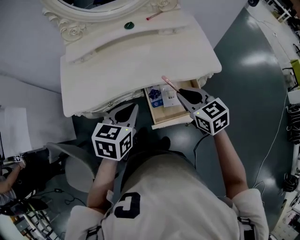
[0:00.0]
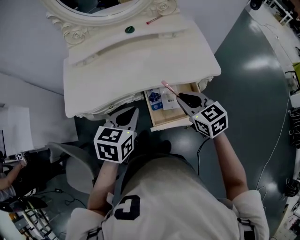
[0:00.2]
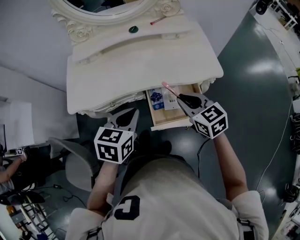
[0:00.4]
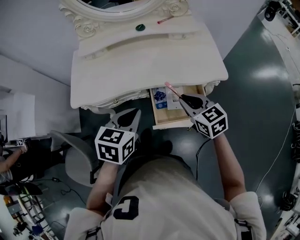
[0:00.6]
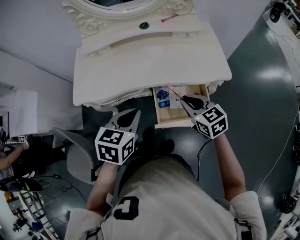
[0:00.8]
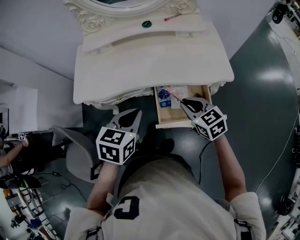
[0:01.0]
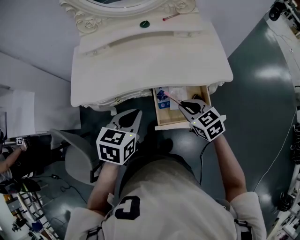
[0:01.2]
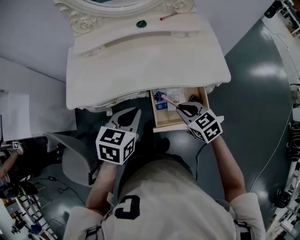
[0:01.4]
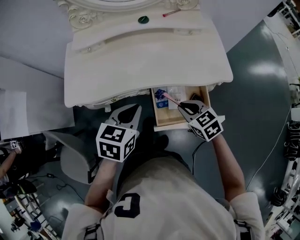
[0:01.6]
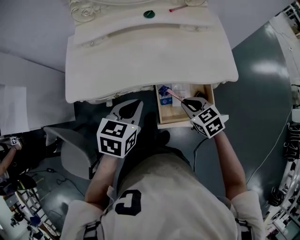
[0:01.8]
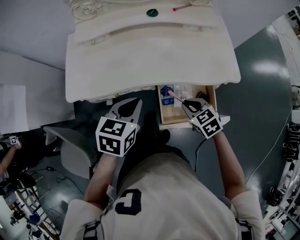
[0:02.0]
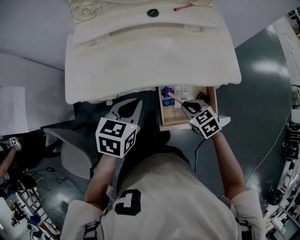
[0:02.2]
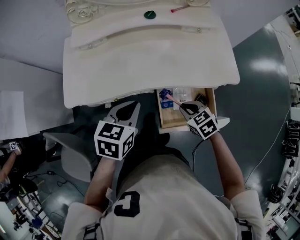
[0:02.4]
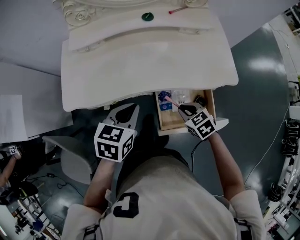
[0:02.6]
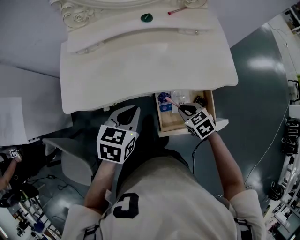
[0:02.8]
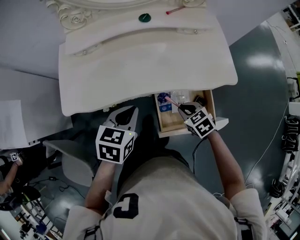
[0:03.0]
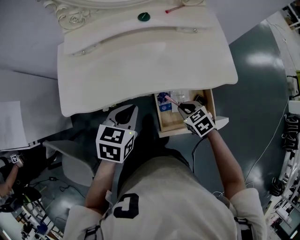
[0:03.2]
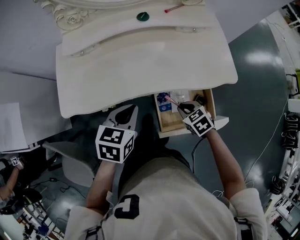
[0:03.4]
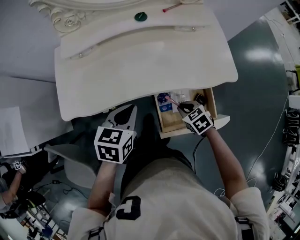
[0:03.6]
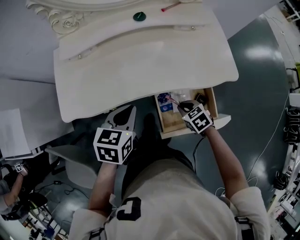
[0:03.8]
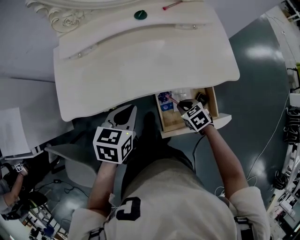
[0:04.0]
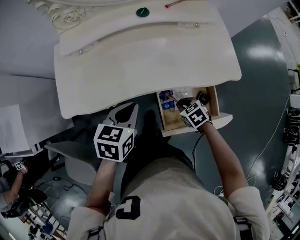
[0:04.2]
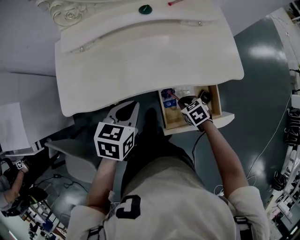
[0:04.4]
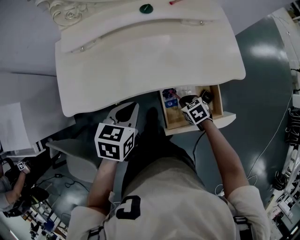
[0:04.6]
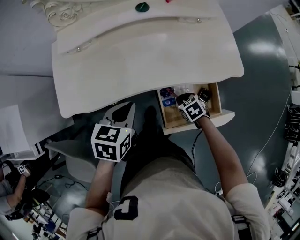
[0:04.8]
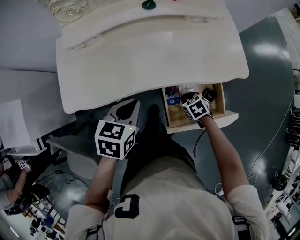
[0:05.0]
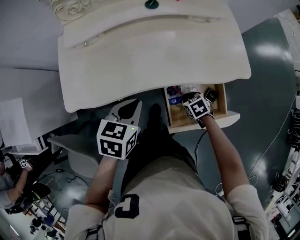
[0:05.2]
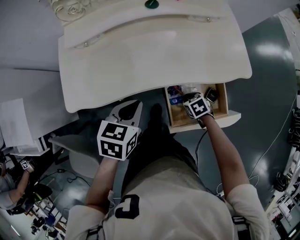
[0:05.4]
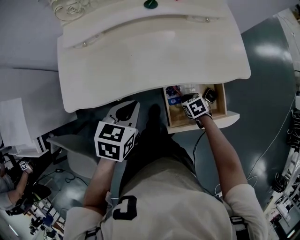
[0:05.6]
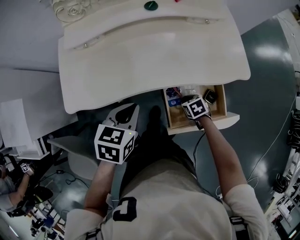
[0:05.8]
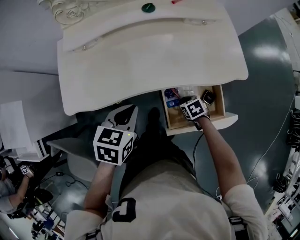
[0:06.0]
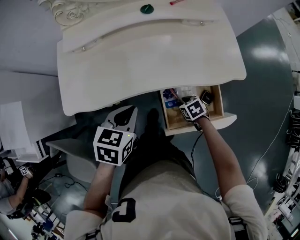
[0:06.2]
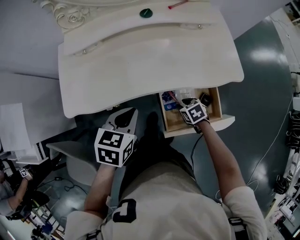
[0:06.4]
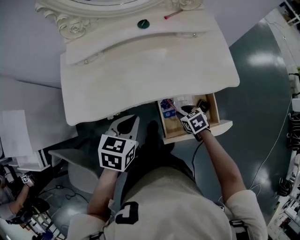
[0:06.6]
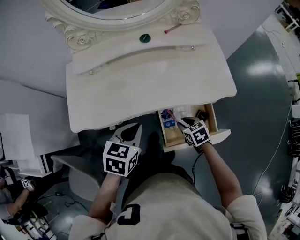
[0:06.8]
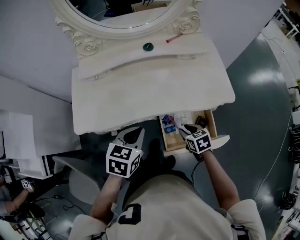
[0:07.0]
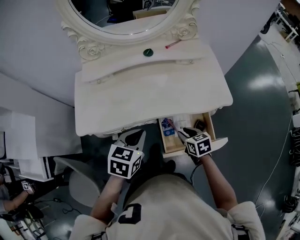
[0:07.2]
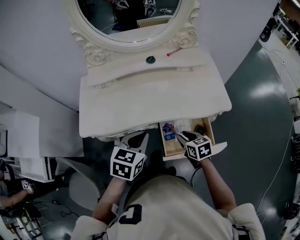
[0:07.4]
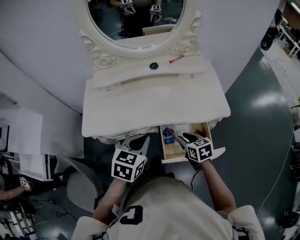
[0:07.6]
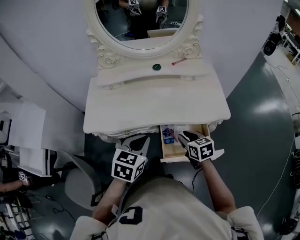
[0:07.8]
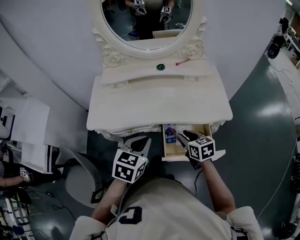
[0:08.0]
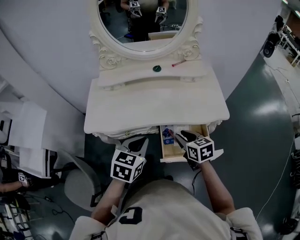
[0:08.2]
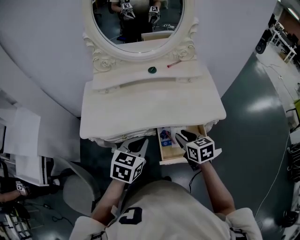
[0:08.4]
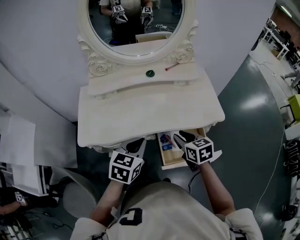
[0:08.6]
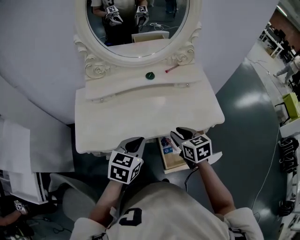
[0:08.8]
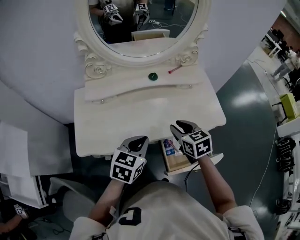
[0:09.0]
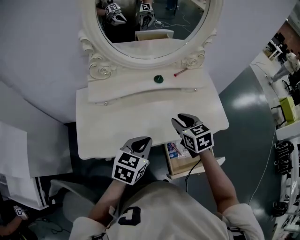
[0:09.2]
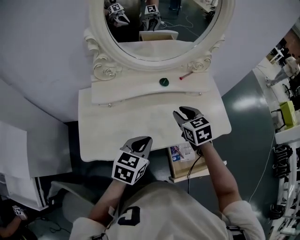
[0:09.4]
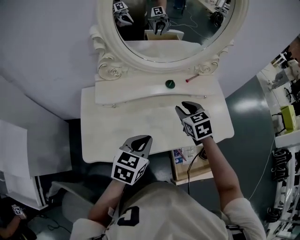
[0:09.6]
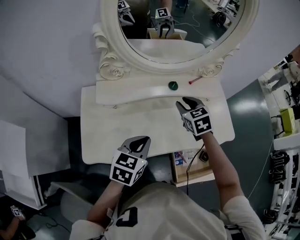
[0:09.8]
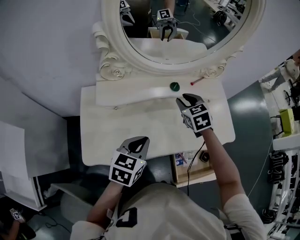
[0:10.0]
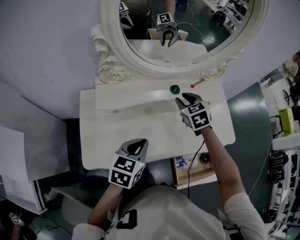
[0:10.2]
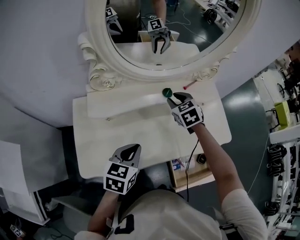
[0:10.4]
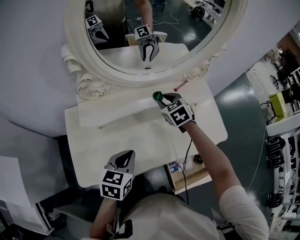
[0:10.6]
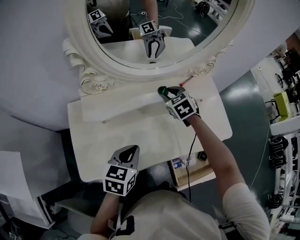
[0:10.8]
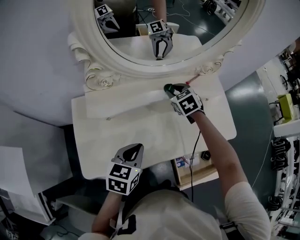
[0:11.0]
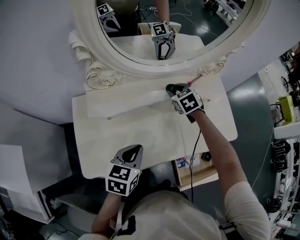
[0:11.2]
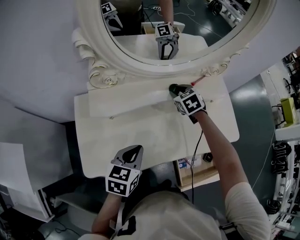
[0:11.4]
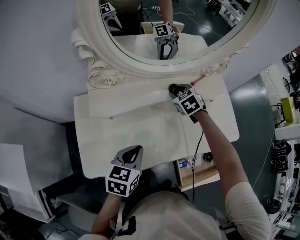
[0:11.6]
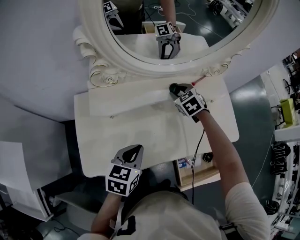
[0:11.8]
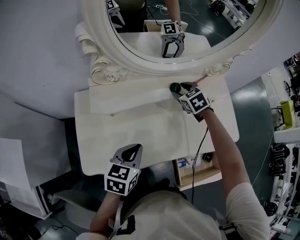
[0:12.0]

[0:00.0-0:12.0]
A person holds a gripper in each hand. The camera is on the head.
0:00.0 to 0:01.6: The right gripper heads downward, covering roughly 10 cm.
0:01.6 to 0:03.0: The right gripper heads downward, covering some 10 cm, while the left gripper goes some 5 cm forward.
0:03.0 to 0:04.4: The right gripper travels downward by about 5 cm.
0:04.4 to 0:06.0: The right gripper heads downward, covering some 5 cm.
0:06.0 to 0:07.6: The left gripper shifts roughly 10 cm upward and backward. The right gripper heads upward, covering approximately 20 cm, and rotates some 30 degrees.
0:07.6 to 0:09.0: The right gripper goes roughly 15 cm forward, upward and to the left. Meanwhile the left gripper moves forward and to the left, roughly 10 cm.
0:09.0 to 0:10.4: The left gripper is displaced to the left and forward by about 15 cm, while the right gripper is displaced forward and to the left by roughly 25 cm, and changes its angle by about 20 degrees.
0:10.4 to 0:12.0: The right gripper heads downward, covering some 5 cm.

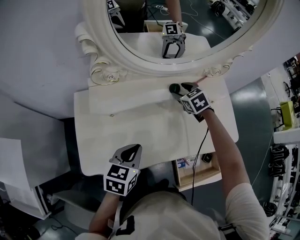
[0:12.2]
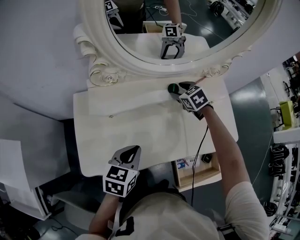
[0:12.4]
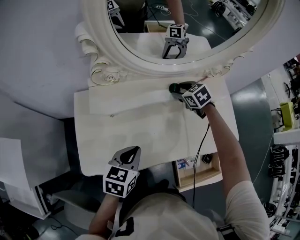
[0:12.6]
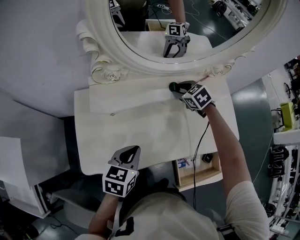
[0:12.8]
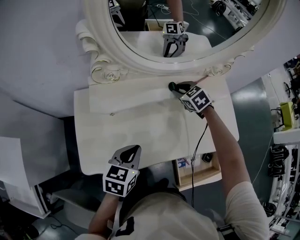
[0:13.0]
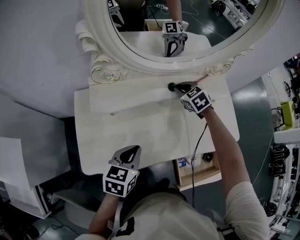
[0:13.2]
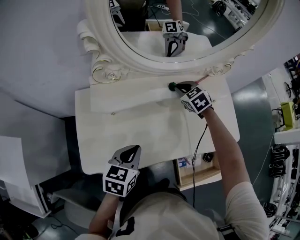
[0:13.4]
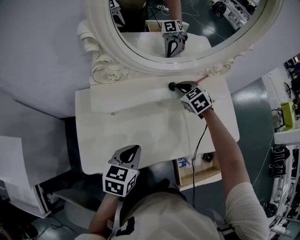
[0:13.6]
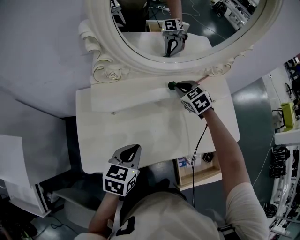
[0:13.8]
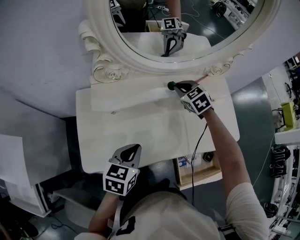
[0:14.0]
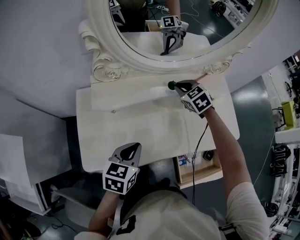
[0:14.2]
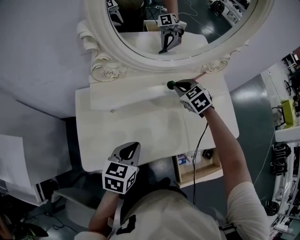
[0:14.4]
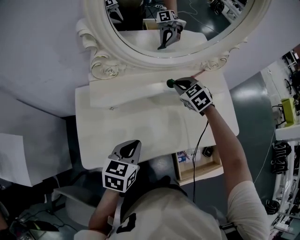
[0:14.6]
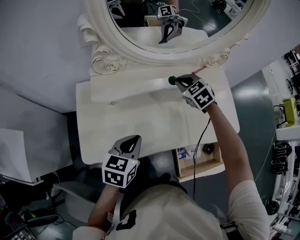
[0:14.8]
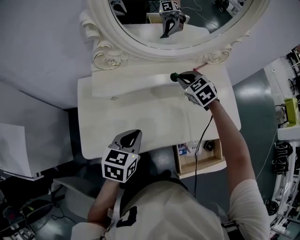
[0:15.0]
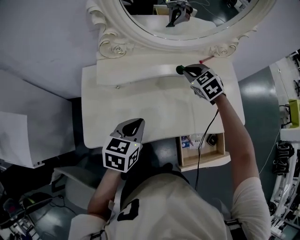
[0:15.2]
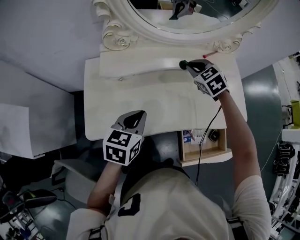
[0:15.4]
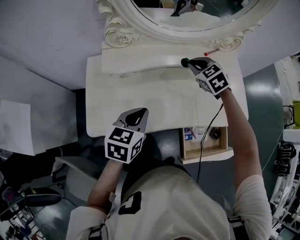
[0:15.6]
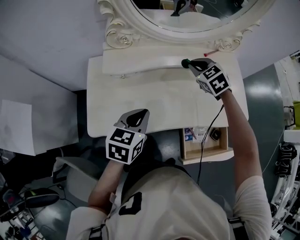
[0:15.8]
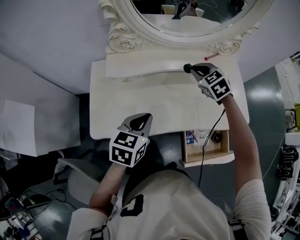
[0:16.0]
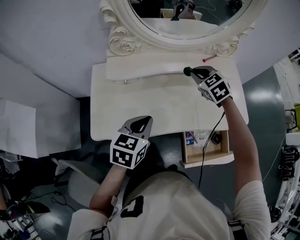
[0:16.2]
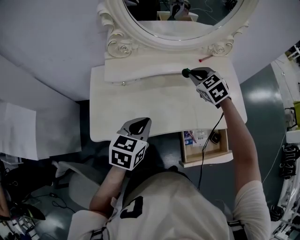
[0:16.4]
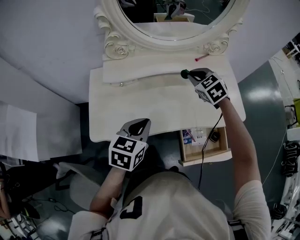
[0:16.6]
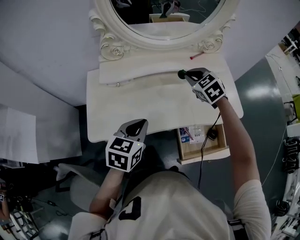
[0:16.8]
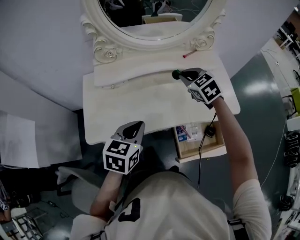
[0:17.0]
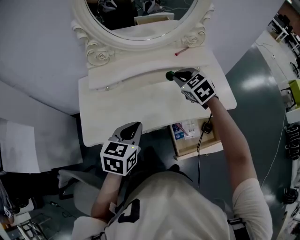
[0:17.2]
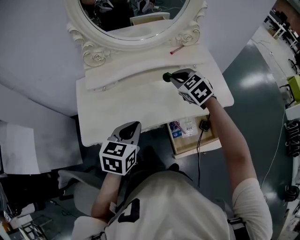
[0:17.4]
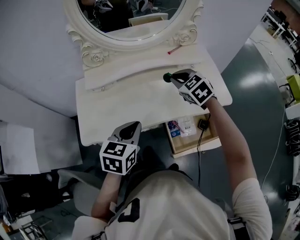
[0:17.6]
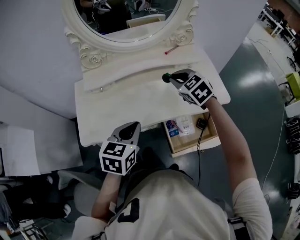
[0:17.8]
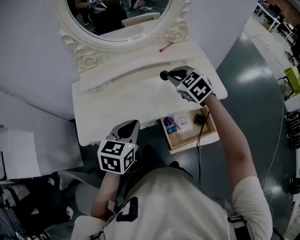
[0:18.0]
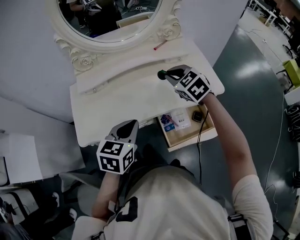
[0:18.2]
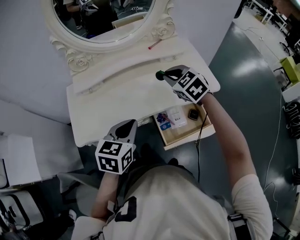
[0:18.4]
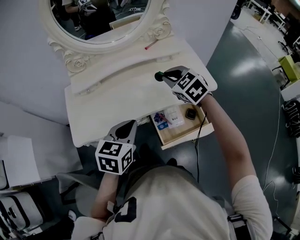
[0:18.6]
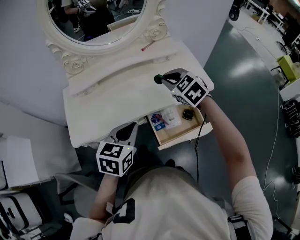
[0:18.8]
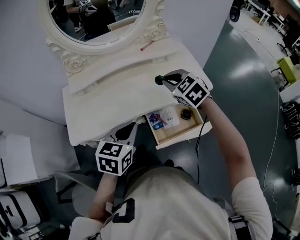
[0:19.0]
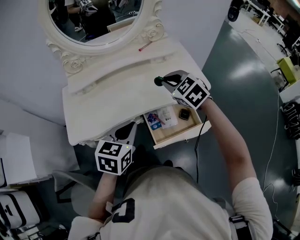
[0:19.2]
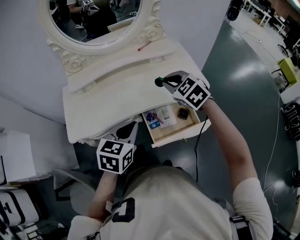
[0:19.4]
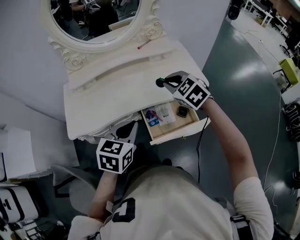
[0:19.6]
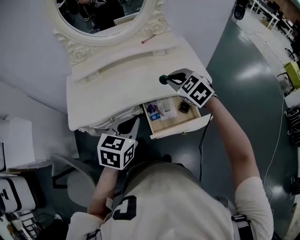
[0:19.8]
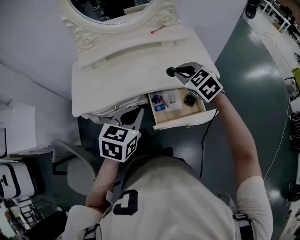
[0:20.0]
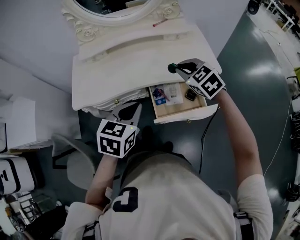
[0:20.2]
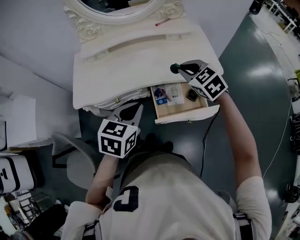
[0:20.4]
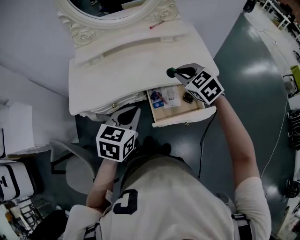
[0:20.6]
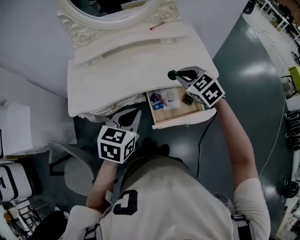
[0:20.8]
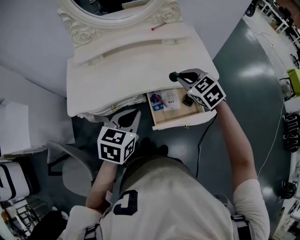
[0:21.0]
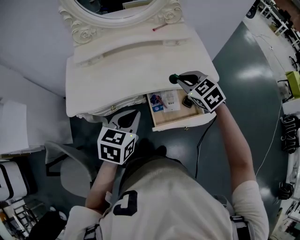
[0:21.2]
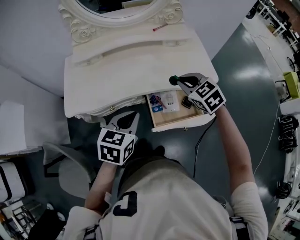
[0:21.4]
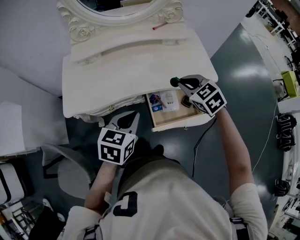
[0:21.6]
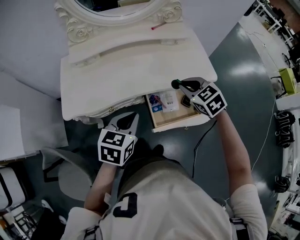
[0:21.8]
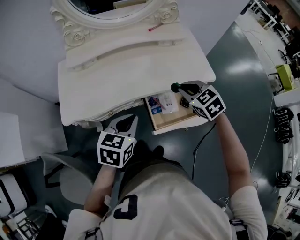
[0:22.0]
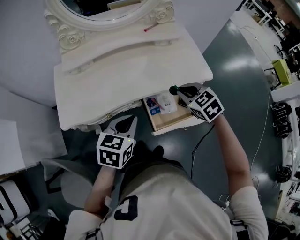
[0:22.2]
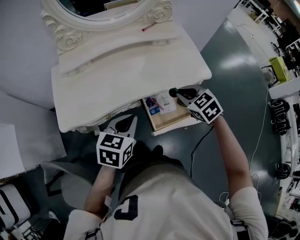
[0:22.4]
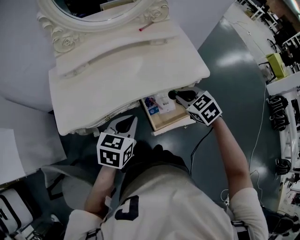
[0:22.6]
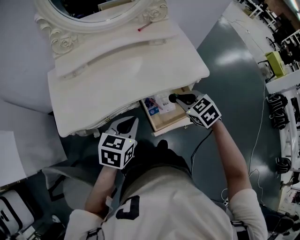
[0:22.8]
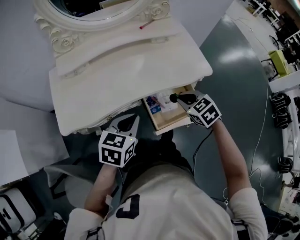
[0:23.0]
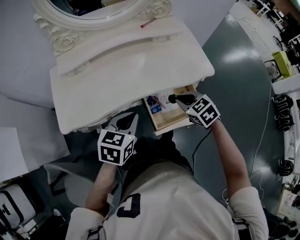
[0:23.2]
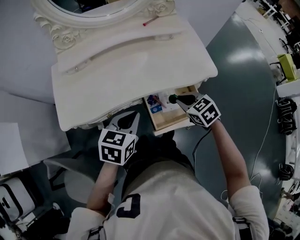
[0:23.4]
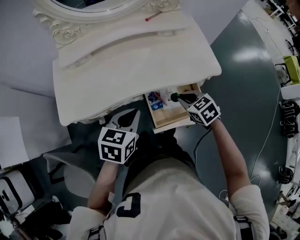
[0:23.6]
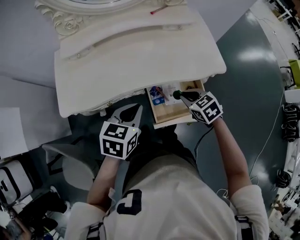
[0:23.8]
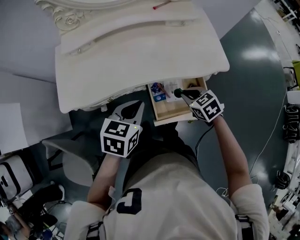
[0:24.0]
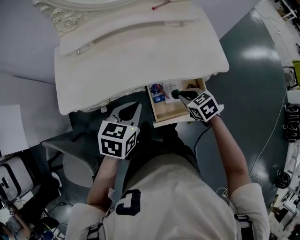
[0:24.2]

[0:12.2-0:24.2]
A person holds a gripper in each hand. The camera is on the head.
0:12.2 to 0:13.8: The right gripper closes up.
0:13.8 to 0:15.2: The right gripper shifts roughly 5 cm backward.
0:15.2 to 0:16.6: The grippers both shift backward by some 5 cm.
0:16.6 to 0:18.2: The right gripper is displaced backward and to the right by roughly 15 cm, while the left gripper moves to the right and backward, some 10 cm.
0:18.2 to 0:19.8: The left gripper heads to the right and backward, covering roughly 15 cm. The right gripper is displaced backward and to the right by about 15 cm.
0:19.8 to 0:21.2: The grippers make only small movements.
0:21.2 to 0:22.6: The right gripper goes about 5 cm downward. The left gripper moves roughly 5 cm.
0:22.6 to 0:24.2: The right gripper travels downward by approximately 10 cm. Meanwhile the left gripper shifts by approximately 5 cm.
